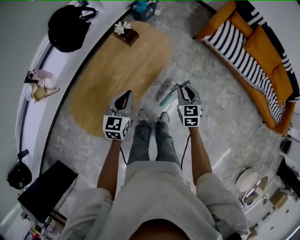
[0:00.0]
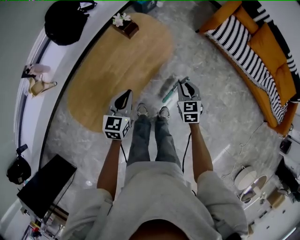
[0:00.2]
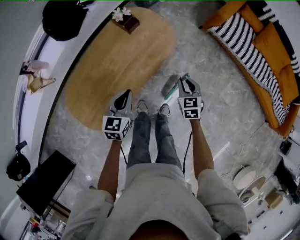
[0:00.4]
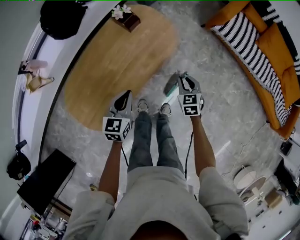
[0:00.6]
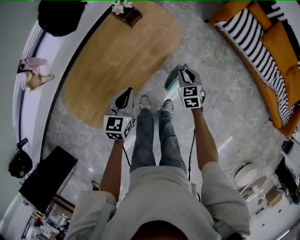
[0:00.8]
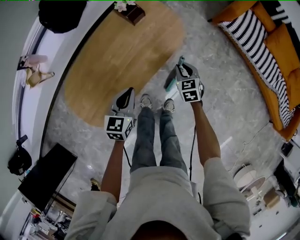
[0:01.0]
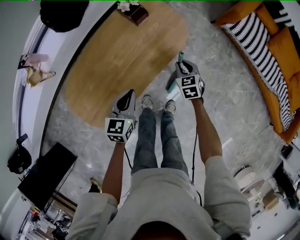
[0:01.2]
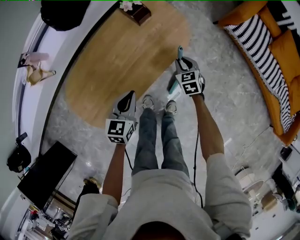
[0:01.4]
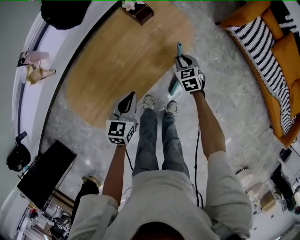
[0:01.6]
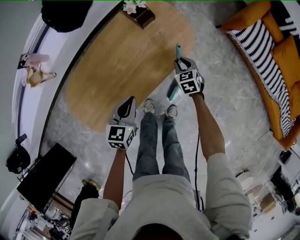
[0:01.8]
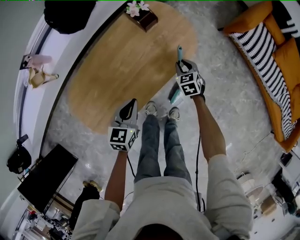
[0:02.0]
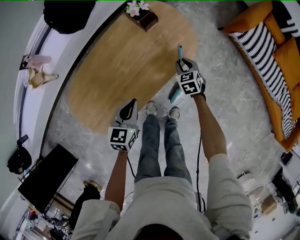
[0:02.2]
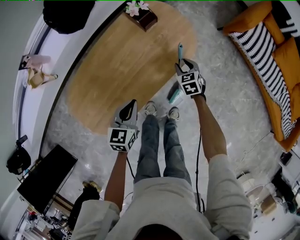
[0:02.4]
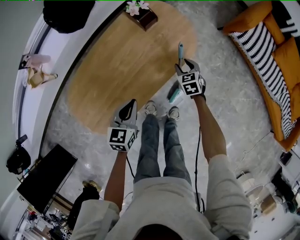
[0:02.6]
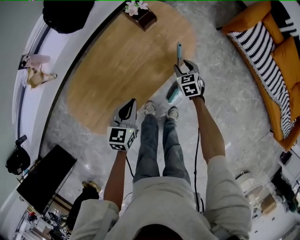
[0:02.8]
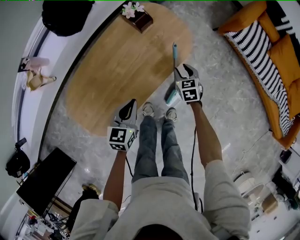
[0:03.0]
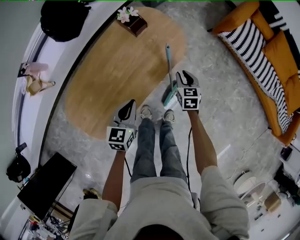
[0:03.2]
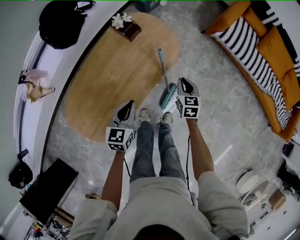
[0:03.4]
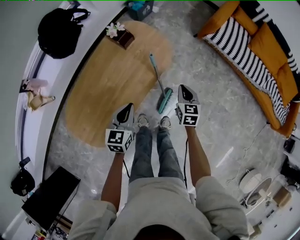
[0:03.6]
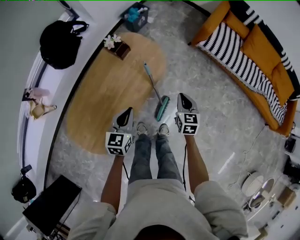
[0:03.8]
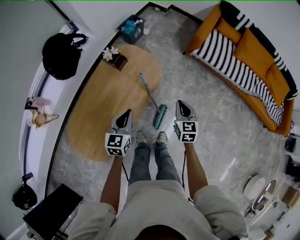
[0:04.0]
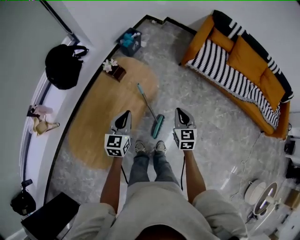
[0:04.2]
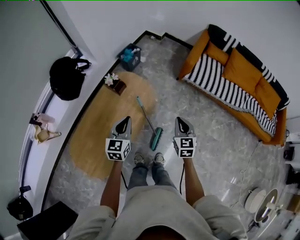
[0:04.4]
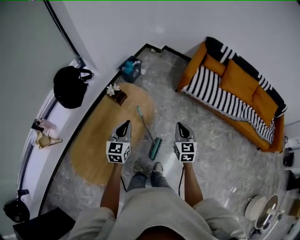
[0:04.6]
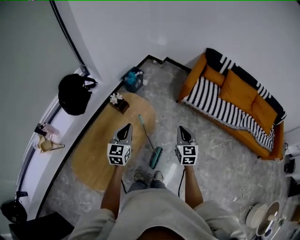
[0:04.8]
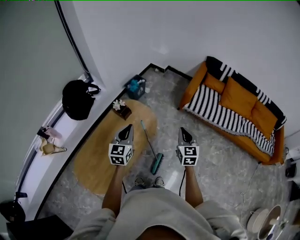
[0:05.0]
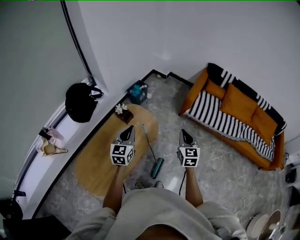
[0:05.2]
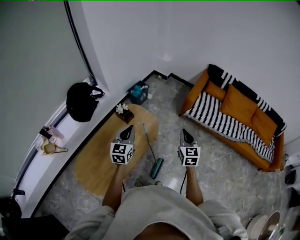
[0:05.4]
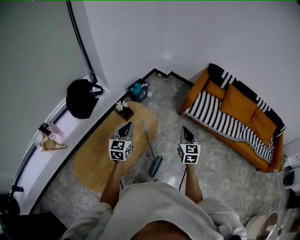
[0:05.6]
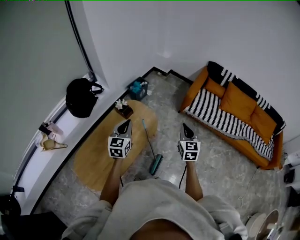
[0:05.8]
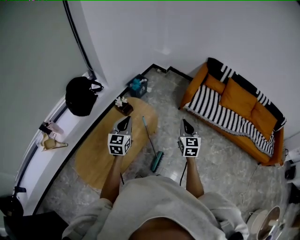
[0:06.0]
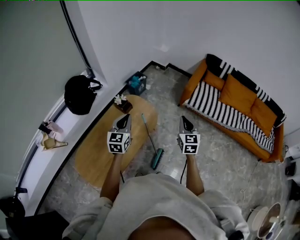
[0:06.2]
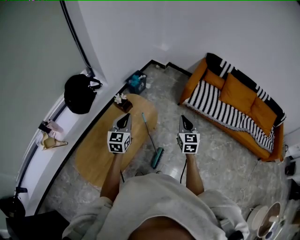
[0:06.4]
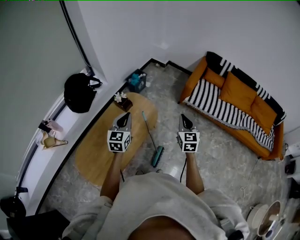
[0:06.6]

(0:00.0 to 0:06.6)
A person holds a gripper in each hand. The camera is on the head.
0:00.0 - 0:01.6: The right gripper heads downward, forward and to the left, covering approximately 25 cm, and changes its angle by about 20 degrees, while the left gripper is displaced downward by about 10 cm.
0:01.6 - 0:03.2: The right gripper shifts by about 5 cm.
0:03.2 - 0:05.0: The right gripper is displaced upward and to the right by about 40 cm, and changes its angle by roughly 30 degrees; the left gripper heads upward, covering roughly 25 cm, and swivels approximately 20 degrees.
0:05.0 - 0:06.6: The grippers move only a little.

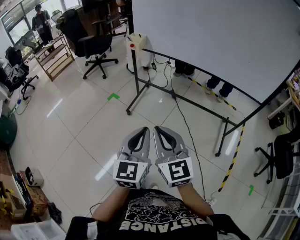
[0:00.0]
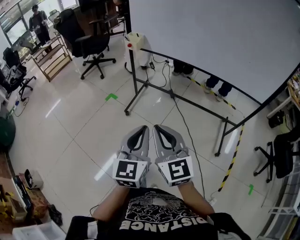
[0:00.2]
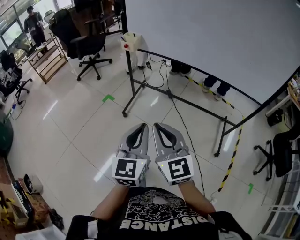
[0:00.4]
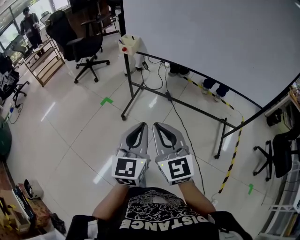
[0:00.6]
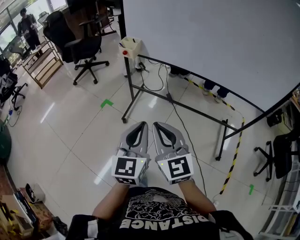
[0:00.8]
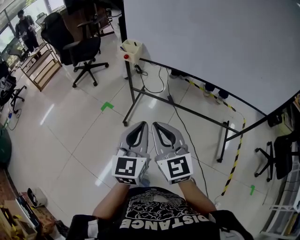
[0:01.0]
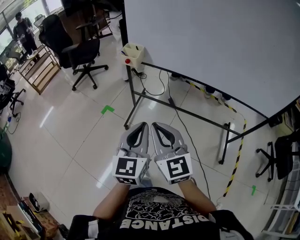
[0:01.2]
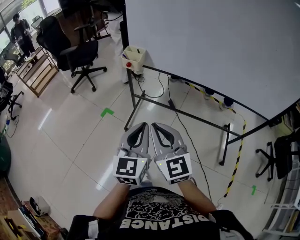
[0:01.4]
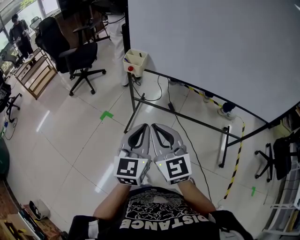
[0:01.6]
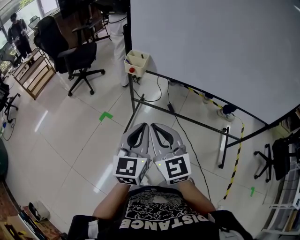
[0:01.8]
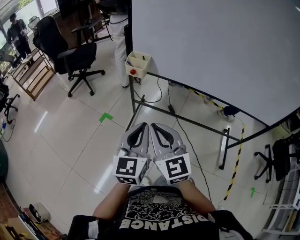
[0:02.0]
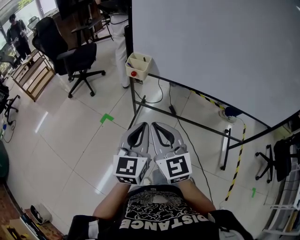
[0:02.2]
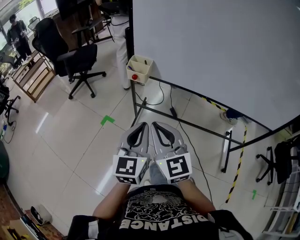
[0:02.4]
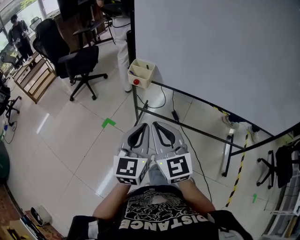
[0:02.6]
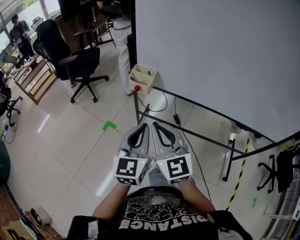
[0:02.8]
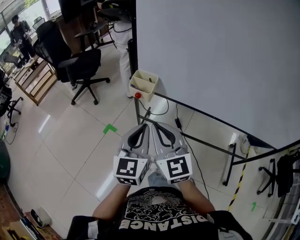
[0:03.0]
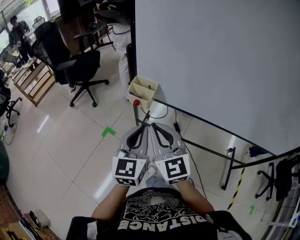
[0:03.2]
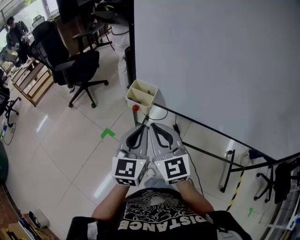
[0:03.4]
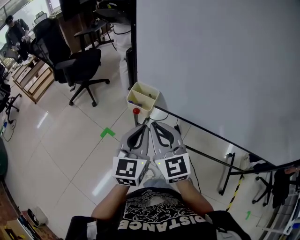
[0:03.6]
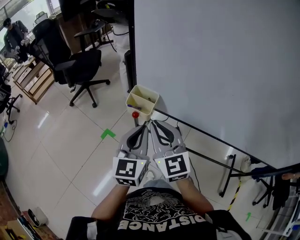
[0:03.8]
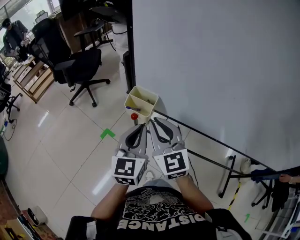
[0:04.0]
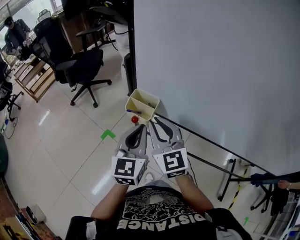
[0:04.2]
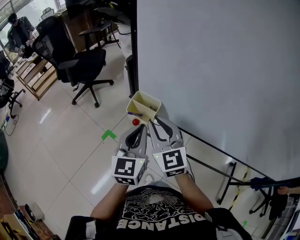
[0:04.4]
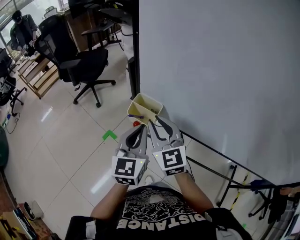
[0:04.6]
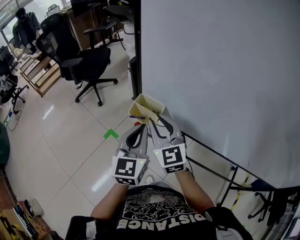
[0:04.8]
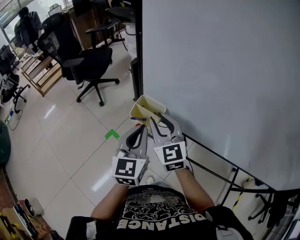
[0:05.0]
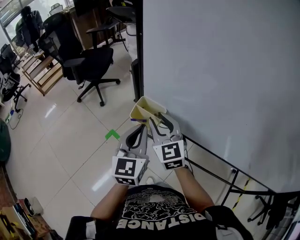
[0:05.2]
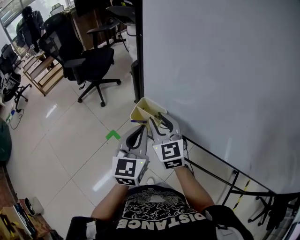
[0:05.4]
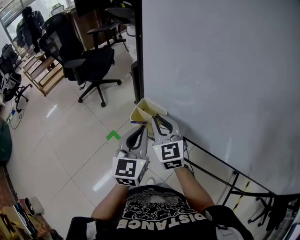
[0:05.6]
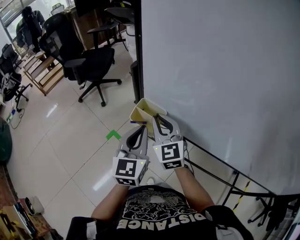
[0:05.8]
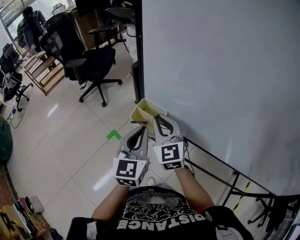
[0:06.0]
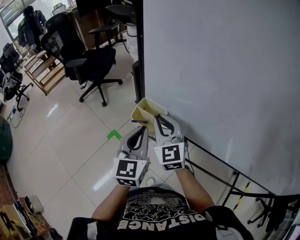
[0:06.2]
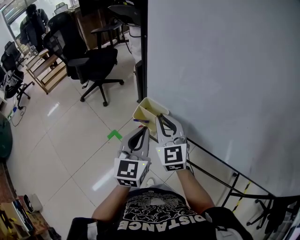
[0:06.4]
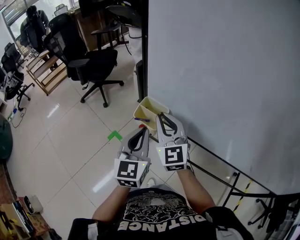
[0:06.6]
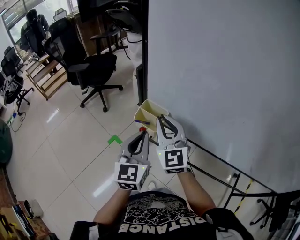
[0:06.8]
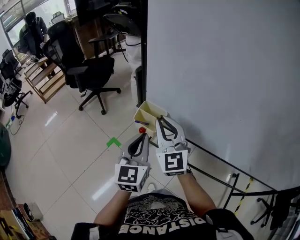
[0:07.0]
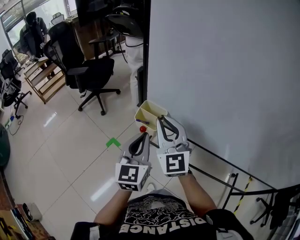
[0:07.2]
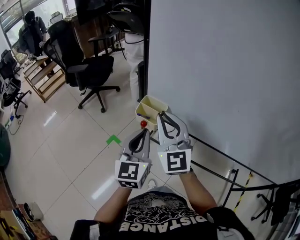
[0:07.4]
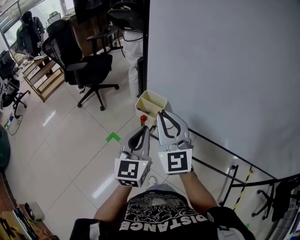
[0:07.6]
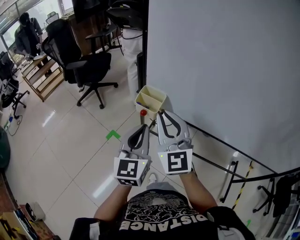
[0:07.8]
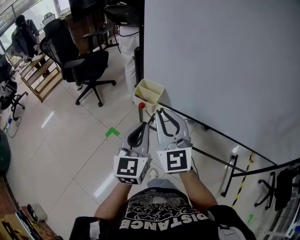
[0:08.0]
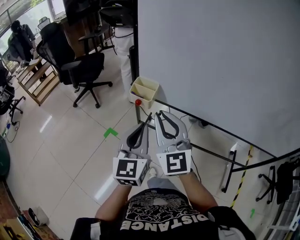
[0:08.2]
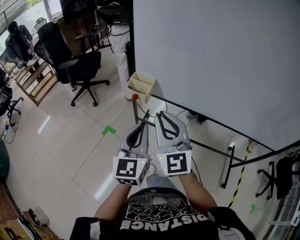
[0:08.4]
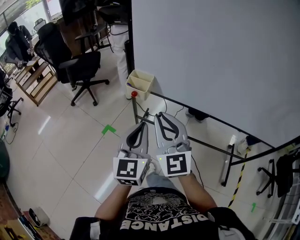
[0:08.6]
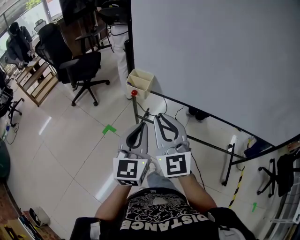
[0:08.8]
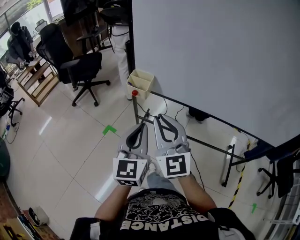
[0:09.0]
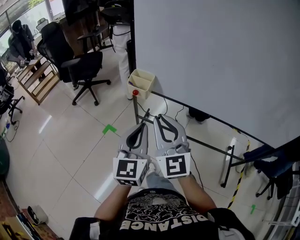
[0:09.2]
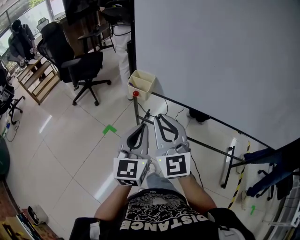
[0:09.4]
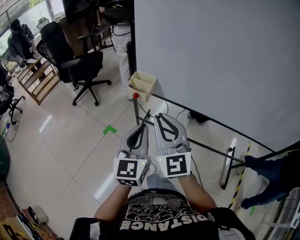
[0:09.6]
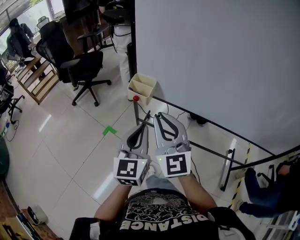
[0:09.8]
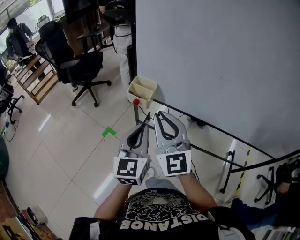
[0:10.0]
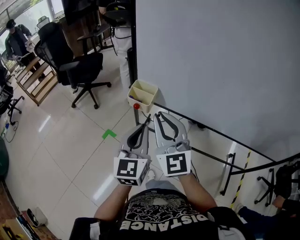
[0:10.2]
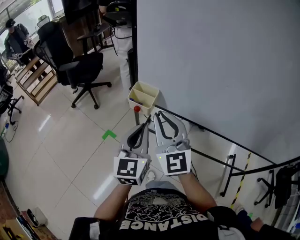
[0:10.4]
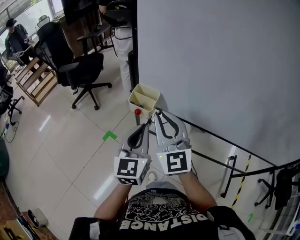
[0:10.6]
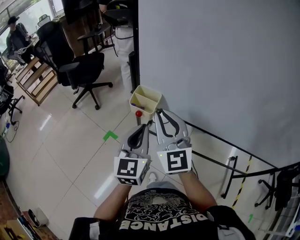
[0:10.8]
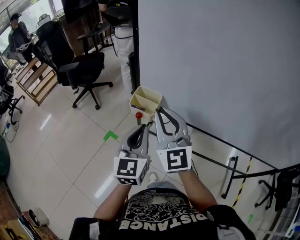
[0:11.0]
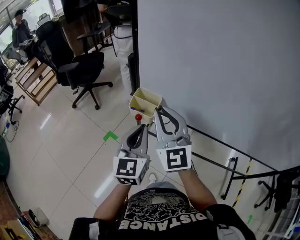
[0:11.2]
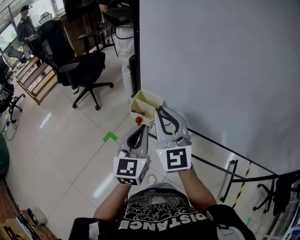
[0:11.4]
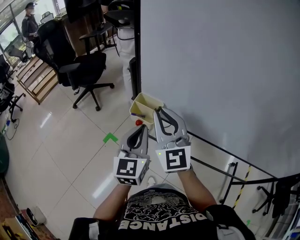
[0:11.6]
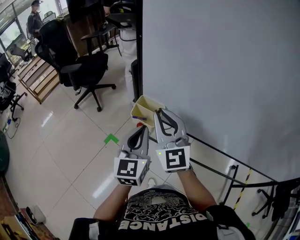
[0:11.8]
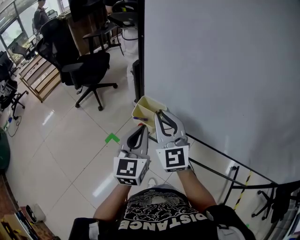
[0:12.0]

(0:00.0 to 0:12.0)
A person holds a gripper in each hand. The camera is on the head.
0:00.0 - 0:01.6: Both grippers move forward, about 30 cm.
0:01.6 - 0:03.0: The two grippers go approximately 20 cm forward.
0:03.0 - 0:04.4: Both grippers move forward, roughly 15 cm.
0:04.4 - 0:06.0: The right gripper travels forward by roughly 5 cm.
0:06.0 - 0:07.6: The left gripper goes about 10 cm backward; the right gripper moves upward and backward, approximately 15 cm.
0:07.6 - 0:09.0: Both grippers move backward, approximately 15 cm.
0:09.0 - 0:10.4: Both grippers move forward, some 10 cm.
0:10.4 - 0:12.0: Both grippers travel together forward, approximately 10 cm.

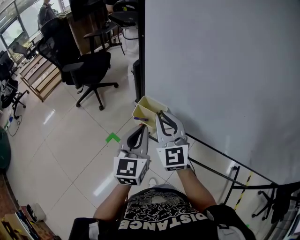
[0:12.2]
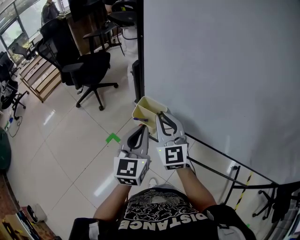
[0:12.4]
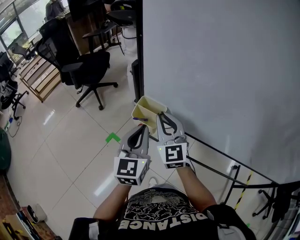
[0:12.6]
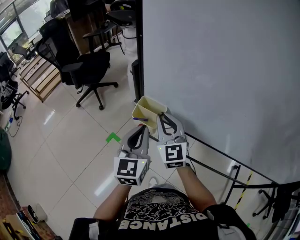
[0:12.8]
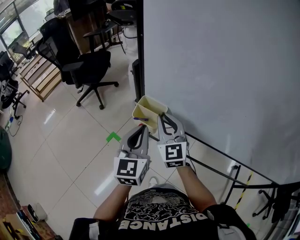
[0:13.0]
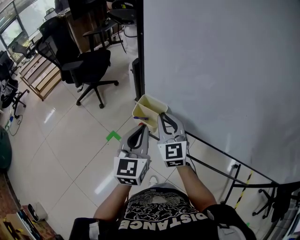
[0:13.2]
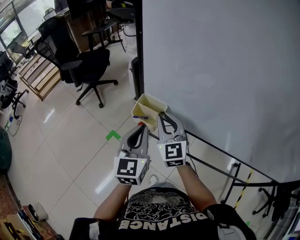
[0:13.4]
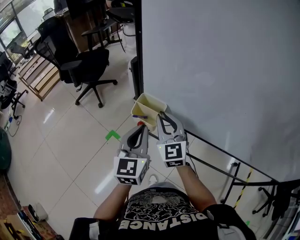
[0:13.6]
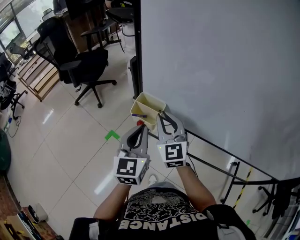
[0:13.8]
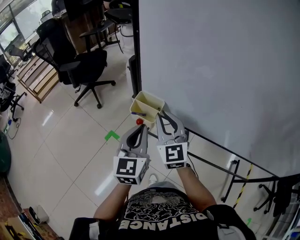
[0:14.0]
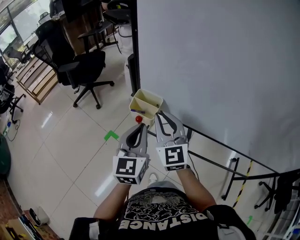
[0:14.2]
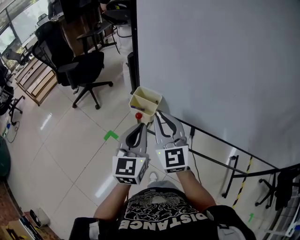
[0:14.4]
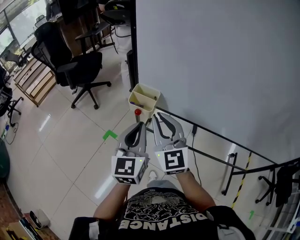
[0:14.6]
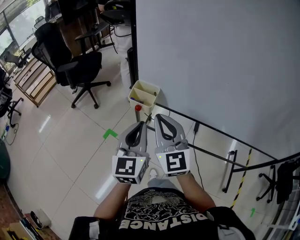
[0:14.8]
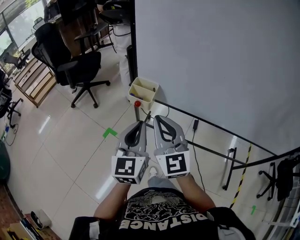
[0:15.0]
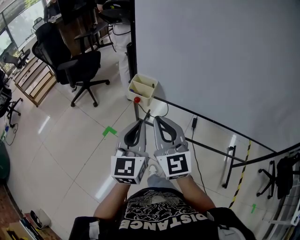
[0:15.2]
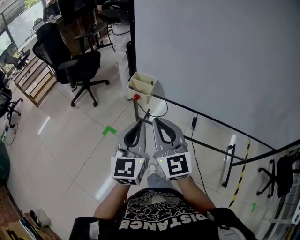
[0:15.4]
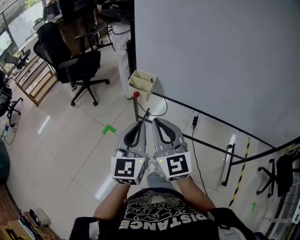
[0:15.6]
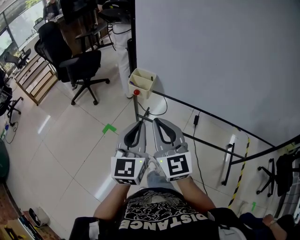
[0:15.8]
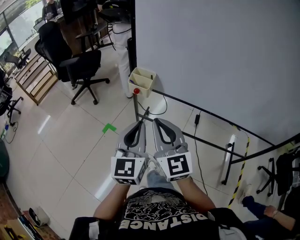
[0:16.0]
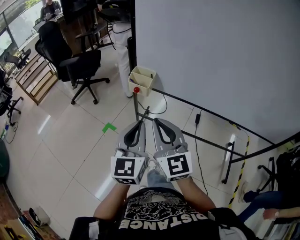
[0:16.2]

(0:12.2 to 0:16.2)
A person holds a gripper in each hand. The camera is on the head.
0:12.2 - 0:13.6: The right gripper moves downward, some 5 cm.
0:13.6 - 0:14.8: The right gripper travels backward and upward by about 15 cm, while the left gripper travels backward by about 10 cm.
0:14.8 - 0:16.2: The two grippers go some 10 cm backward.

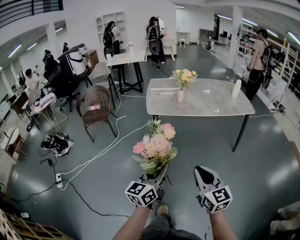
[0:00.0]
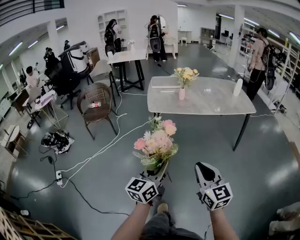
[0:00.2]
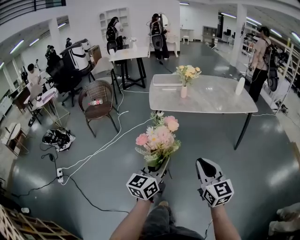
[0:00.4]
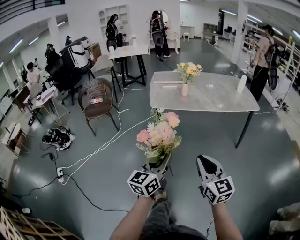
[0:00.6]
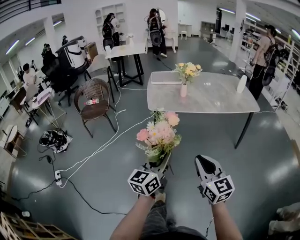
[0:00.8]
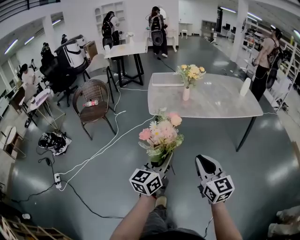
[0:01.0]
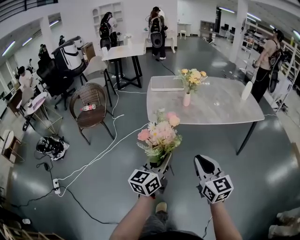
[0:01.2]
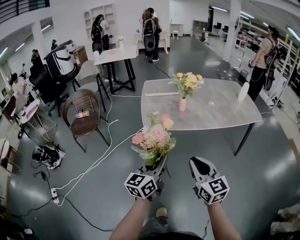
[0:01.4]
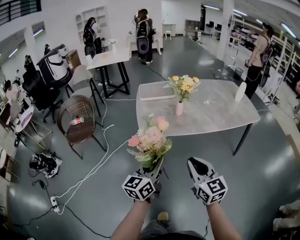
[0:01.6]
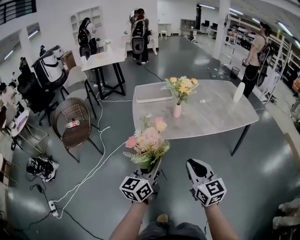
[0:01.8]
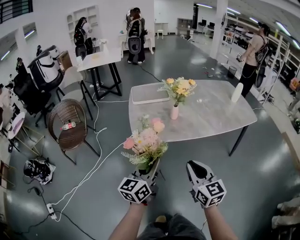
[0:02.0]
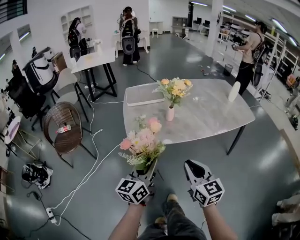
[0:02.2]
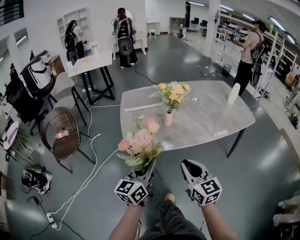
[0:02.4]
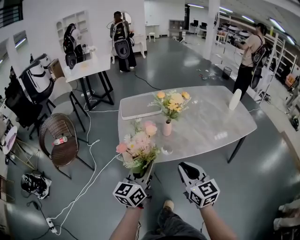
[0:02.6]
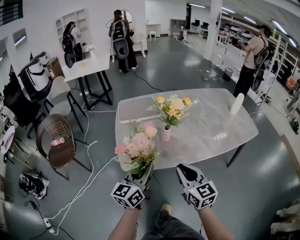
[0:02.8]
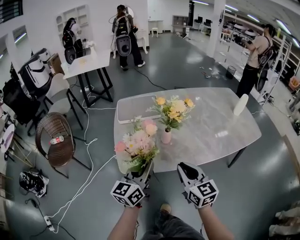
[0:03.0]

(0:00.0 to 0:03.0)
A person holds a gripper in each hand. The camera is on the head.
0:00.0 - 0:01.6: The grippers both shift forward by some 30 cm.
0:01.6 - 0:03.0: The two grippers go approximately 25 cm forward.
